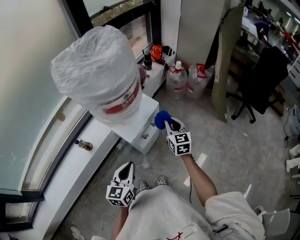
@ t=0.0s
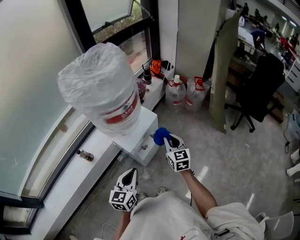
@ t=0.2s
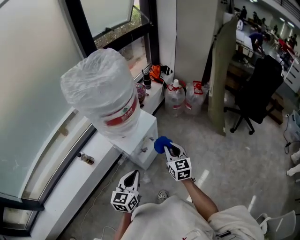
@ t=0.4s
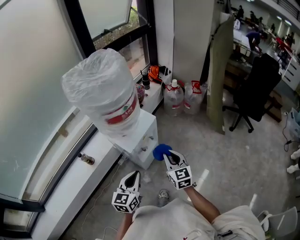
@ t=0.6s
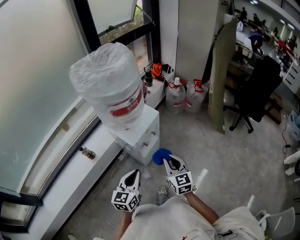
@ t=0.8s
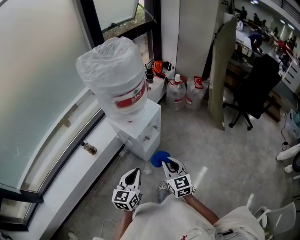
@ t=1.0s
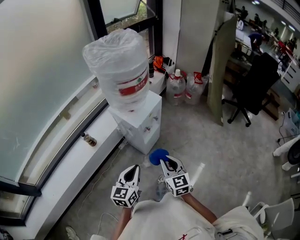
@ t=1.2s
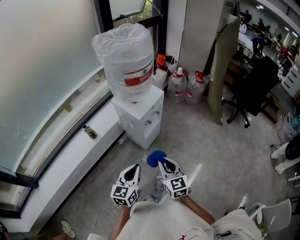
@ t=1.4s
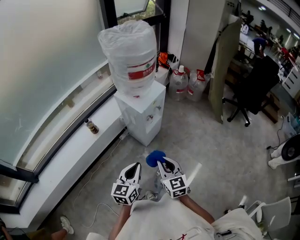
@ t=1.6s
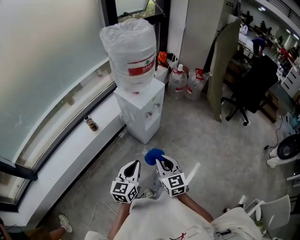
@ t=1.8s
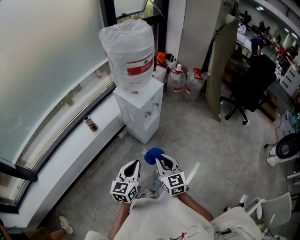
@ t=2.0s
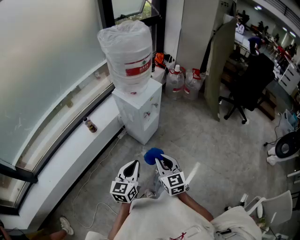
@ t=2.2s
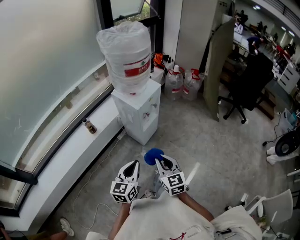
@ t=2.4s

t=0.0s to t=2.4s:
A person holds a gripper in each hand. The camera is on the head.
t=0.0s to t=1.2s: The left gripper travels backward by some 15 cm. The right gripper is displaced backward by approximately 30 cm.
t=1.2s to t=2.4s: The two grippers go about 15 cm backward.
